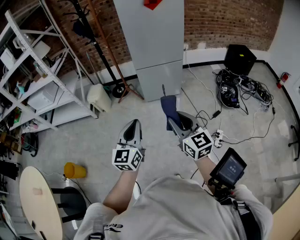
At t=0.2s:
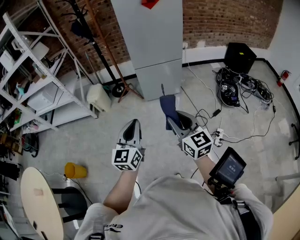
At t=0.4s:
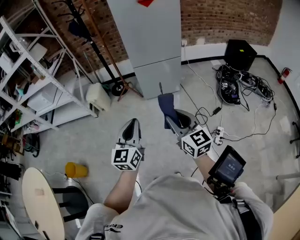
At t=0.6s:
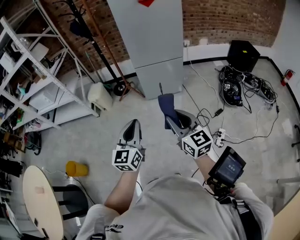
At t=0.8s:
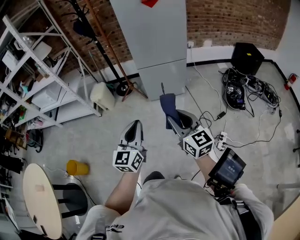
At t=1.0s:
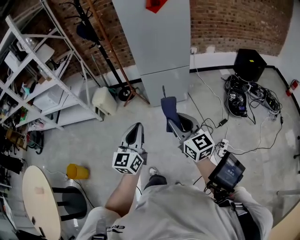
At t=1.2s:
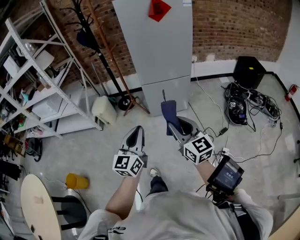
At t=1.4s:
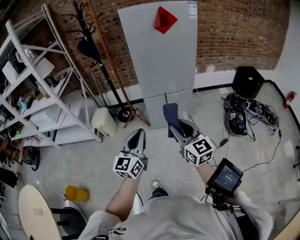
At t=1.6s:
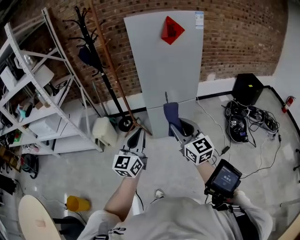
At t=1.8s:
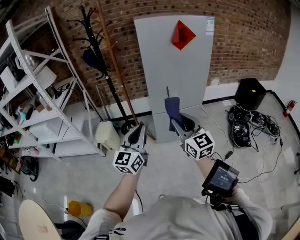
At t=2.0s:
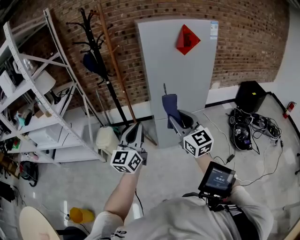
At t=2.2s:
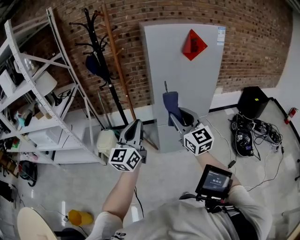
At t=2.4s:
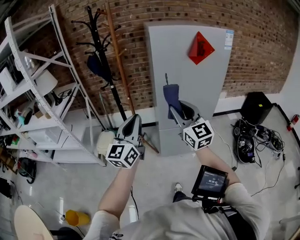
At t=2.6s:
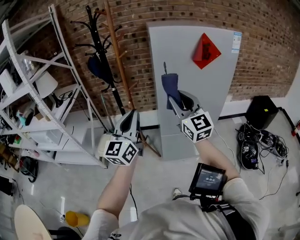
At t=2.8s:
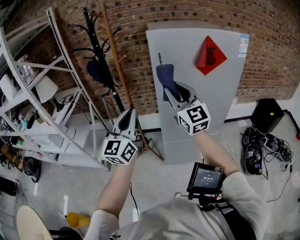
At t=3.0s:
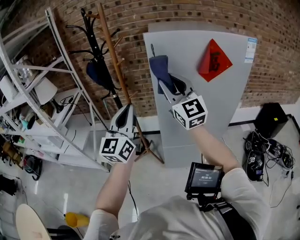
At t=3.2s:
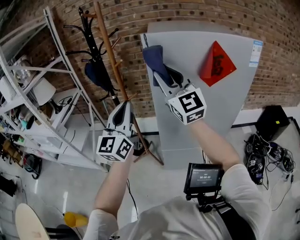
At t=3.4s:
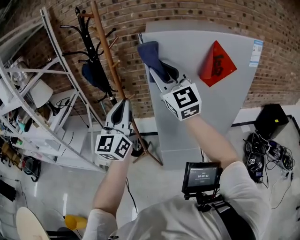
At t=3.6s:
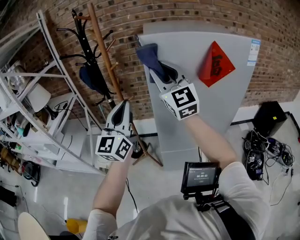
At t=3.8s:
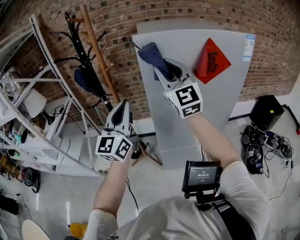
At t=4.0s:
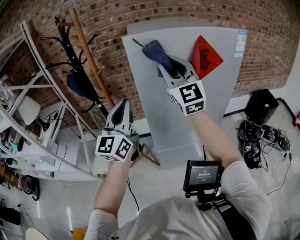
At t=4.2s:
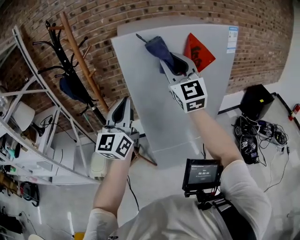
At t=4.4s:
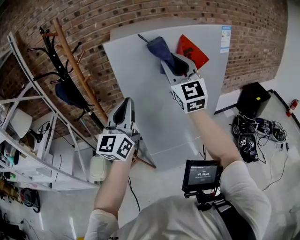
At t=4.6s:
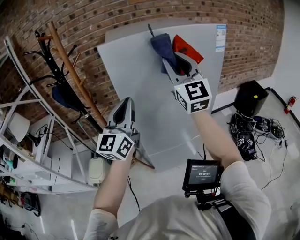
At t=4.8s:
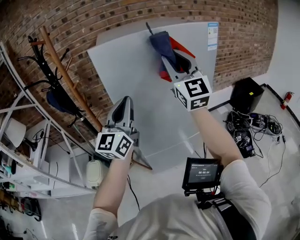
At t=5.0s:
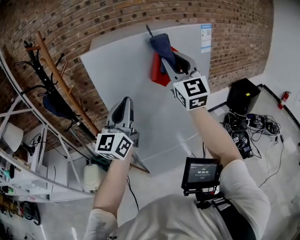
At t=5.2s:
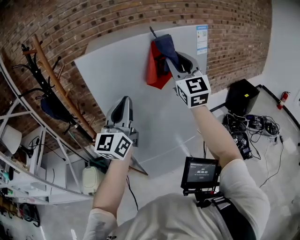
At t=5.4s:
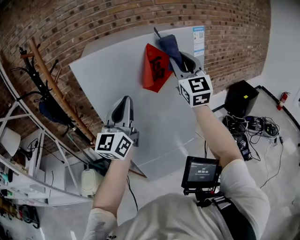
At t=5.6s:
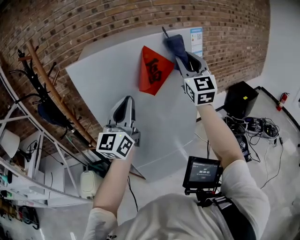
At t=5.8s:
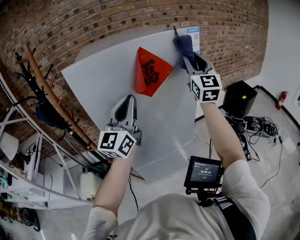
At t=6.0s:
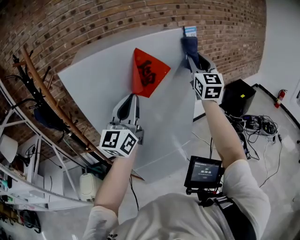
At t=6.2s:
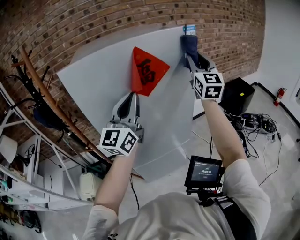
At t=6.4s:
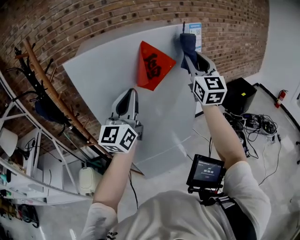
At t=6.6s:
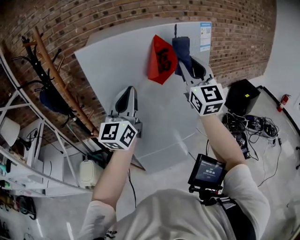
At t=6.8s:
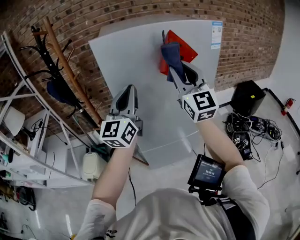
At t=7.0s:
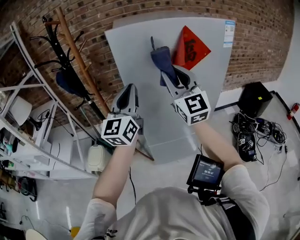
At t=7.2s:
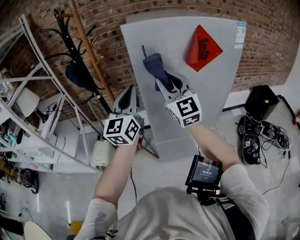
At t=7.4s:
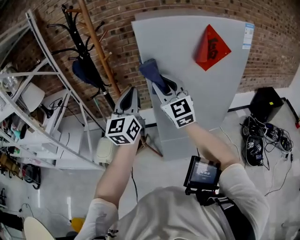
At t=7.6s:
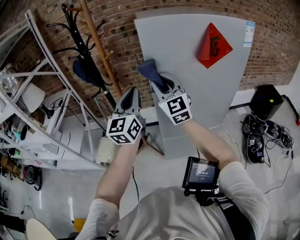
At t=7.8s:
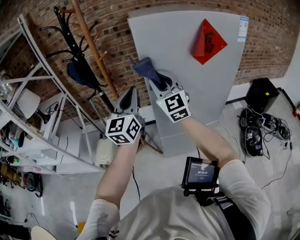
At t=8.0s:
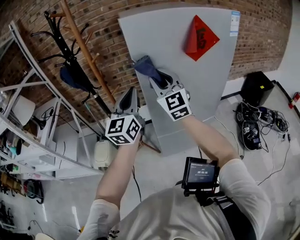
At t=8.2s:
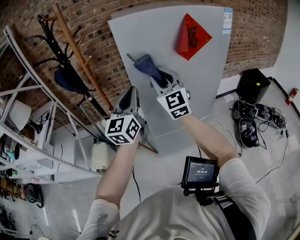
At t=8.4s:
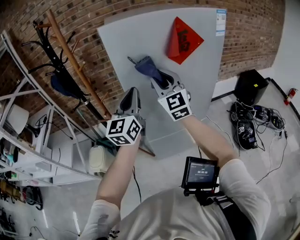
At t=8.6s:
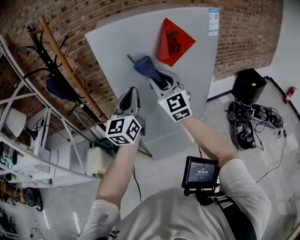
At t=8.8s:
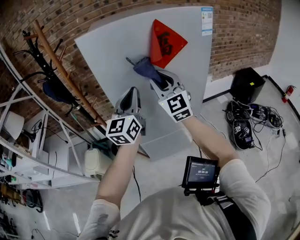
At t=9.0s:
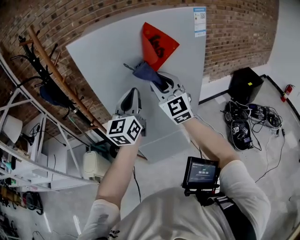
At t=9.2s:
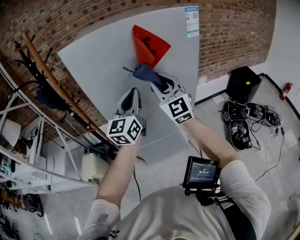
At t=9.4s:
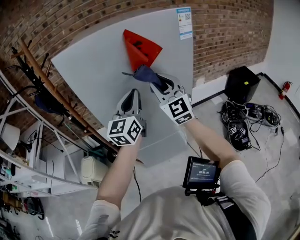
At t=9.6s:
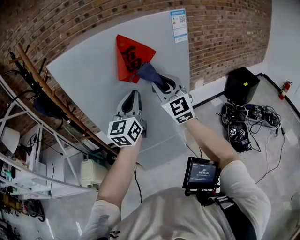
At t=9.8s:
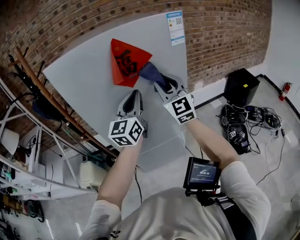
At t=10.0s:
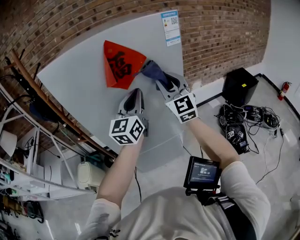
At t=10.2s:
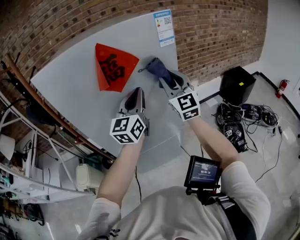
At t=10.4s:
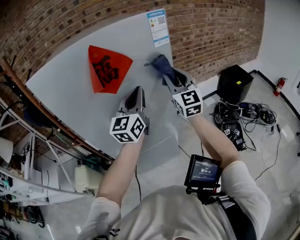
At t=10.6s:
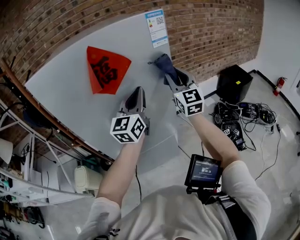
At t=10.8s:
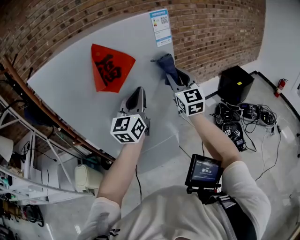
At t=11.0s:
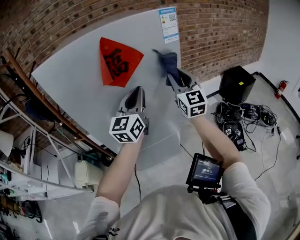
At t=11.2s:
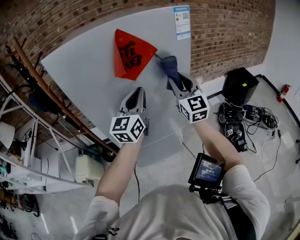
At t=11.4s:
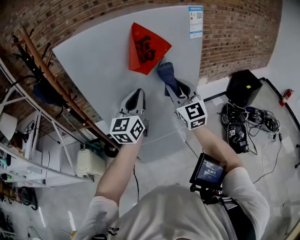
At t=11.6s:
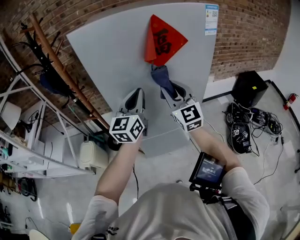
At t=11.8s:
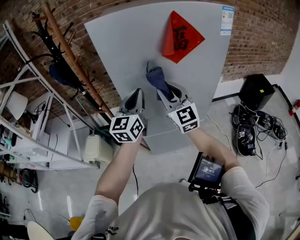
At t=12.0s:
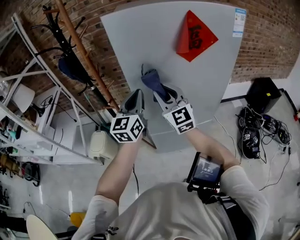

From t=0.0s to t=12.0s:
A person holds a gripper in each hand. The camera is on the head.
From t=0.0s to t=1.6s: The grippers both shift forward by about 25 cm.
From t=1.6s to t=3.0s: The two grippers go some 40 cm forward and upward. The right gripper rotates roughly 30 degrees.
From t=3.0s to t=4.4s: Both grippers travel together to the right and forward, approximately 15 cm. The right gripper rotates approximately 20 degrees.
From t=4.4s to t=6.0s: The left gripper is displaced to the right and forward by roughly 20 cm; the right gripper heads to the right and forward, covering about 30 cm, and turns by approximately 20 degrees.
From t=6.0s to t=7.6s: The left gripper shifts by roughly 25 cm, and swivels roughly 30 degrees, while the right gripper changes place by approximately 50 cm, and rotates approximately 40 degrees.
From t=7.6s to t=9.0s: Both grippers move to the right, some 20 cm.
From t=9.0s to t=10.4s: The left gripper shifts some 20 cm to the right and forward. The right gripper moves to the right, some 25 cm.
From t=10.4s to t=12.0s: The grippers both shift to the left by some 30 cm. The right gripper swivels roughly 20 degrees.

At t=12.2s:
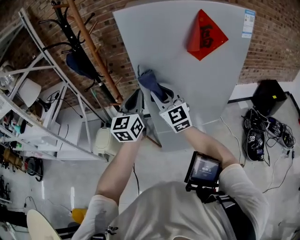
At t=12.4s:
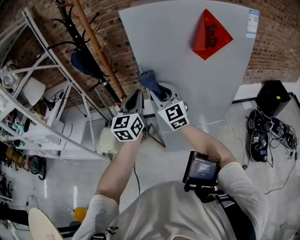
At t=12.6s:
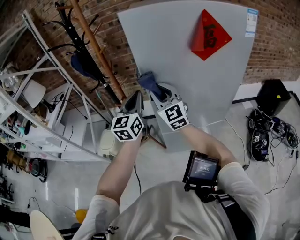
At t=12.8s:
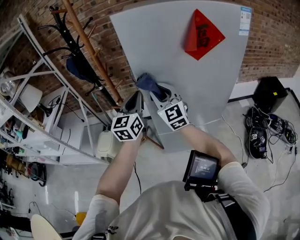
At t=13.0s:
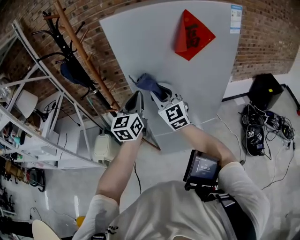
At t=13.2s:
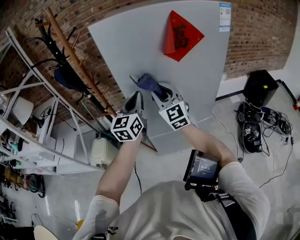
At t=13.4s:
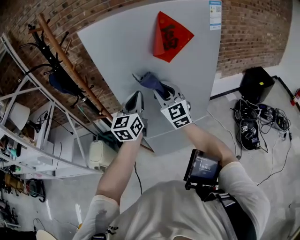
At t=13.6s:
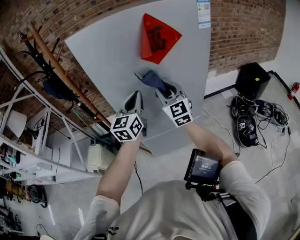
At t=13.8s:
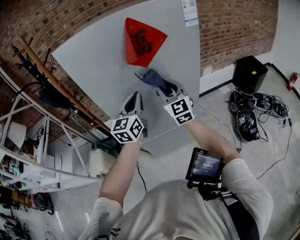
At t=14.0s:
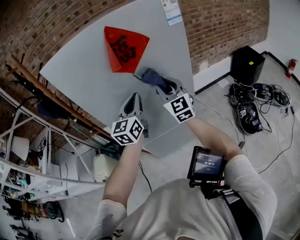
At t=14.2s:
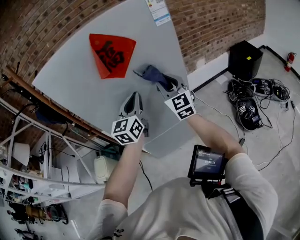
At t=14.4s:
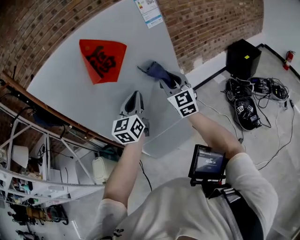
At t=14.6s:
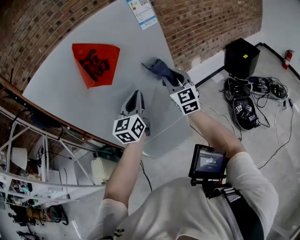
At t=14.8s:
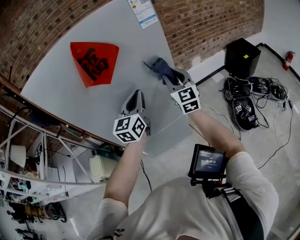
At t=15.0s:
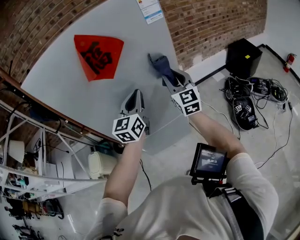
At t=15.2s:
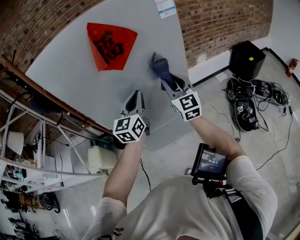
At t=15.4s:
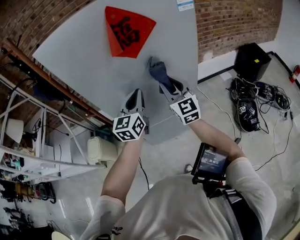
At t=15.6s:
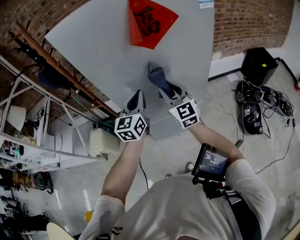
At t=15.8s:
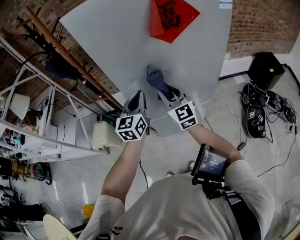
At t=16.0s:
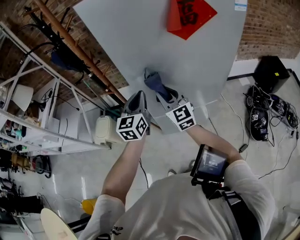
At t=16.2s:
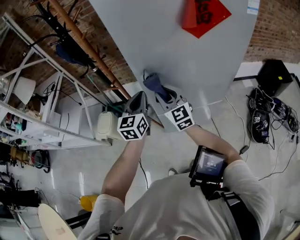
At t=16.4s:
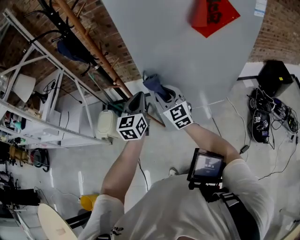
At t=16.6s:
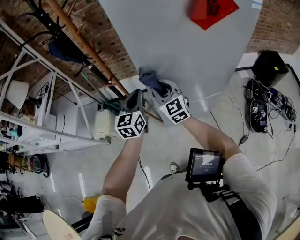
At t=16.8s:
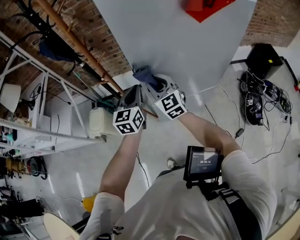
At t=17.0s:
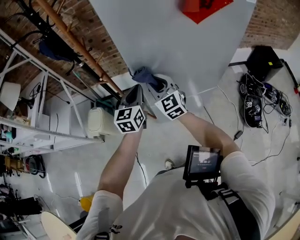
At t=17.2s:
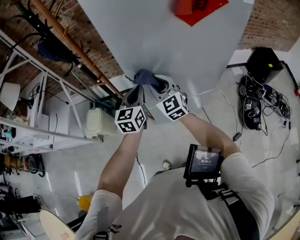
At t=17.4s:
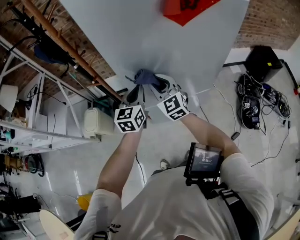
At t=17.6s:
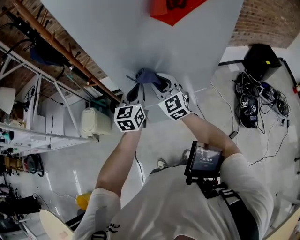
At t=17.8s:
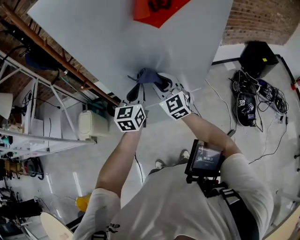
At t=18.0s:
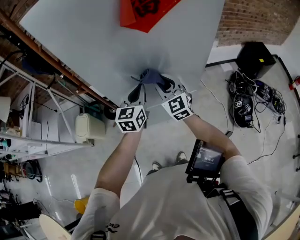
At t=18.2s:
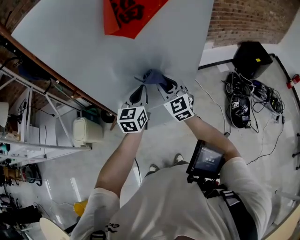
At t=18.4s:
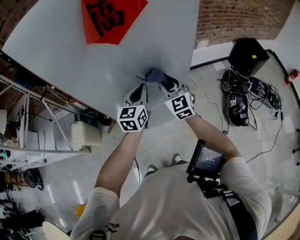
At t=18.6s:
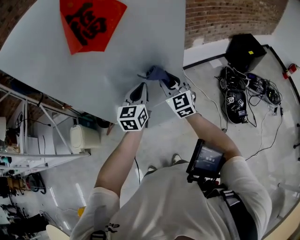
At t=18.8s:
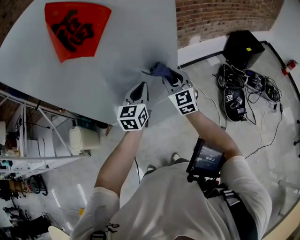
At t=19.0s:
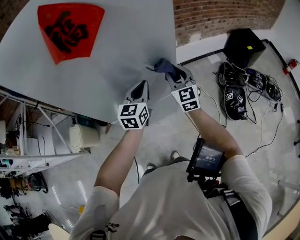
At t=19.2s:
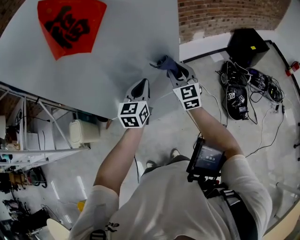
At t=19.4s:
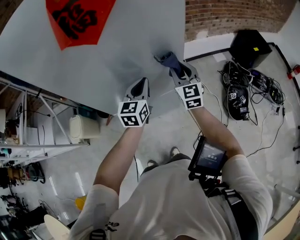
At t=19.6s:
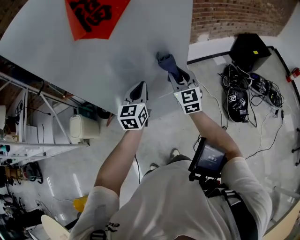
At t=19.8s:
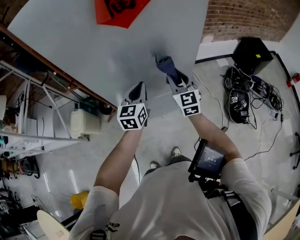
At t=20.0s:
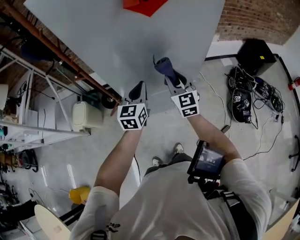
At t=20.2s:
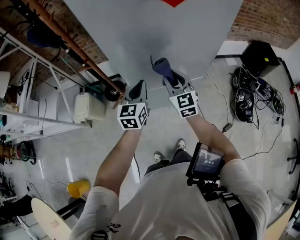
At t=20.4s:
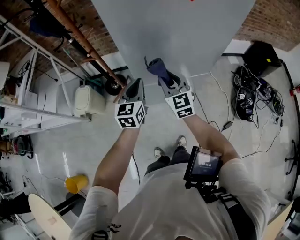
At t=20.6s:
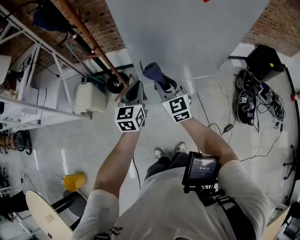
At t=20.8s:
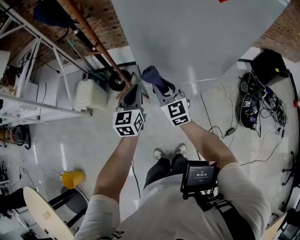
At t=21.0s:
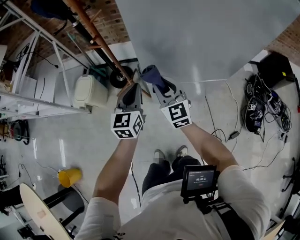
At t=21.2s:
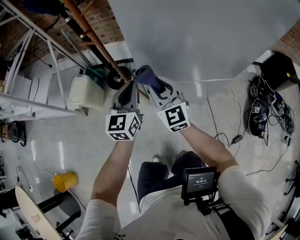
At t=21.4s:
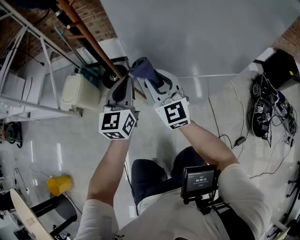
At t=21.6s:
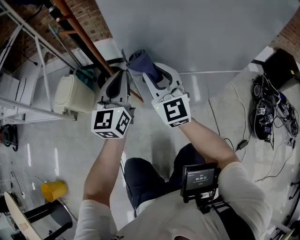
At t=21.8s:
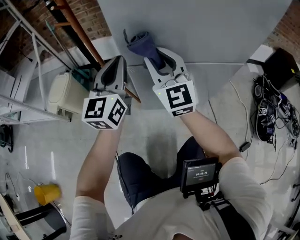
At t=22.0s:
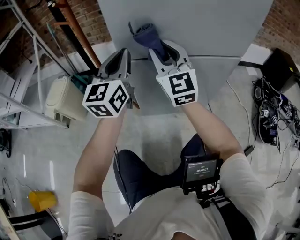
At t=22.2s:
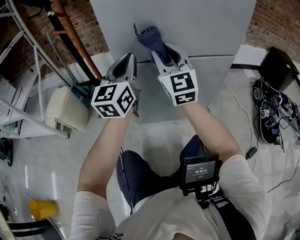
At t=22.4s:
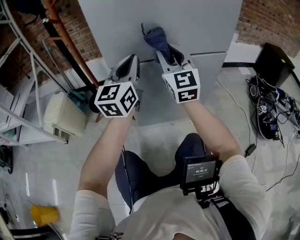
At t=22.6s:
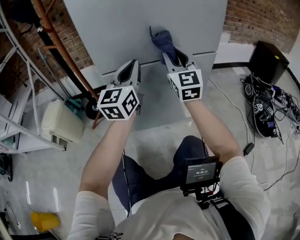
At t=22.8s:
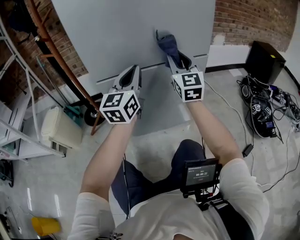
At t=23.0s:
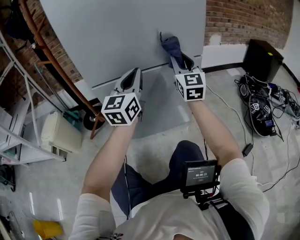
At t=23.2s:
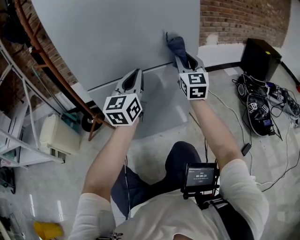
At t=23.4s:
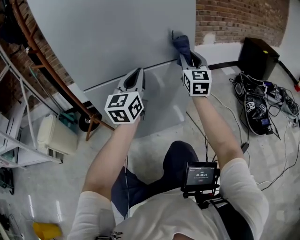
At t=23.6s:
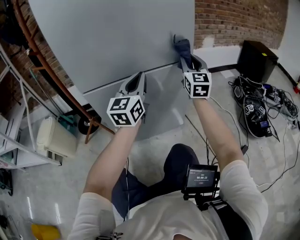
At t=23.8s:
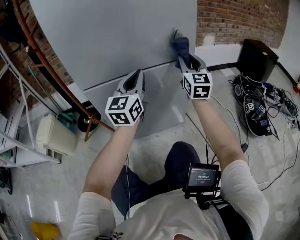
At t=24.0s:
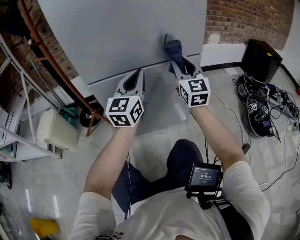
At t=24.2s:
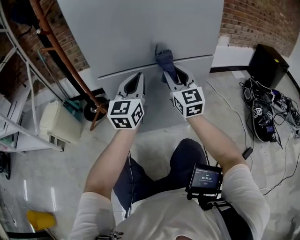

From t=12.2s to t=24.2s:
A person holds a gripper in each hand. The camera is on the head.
From t=12.2s to t=13.8s: Both grippers move to the right, some 20 cm.
From t=13.8s to t=15.2s: The grippers both shift to the right by roughly 10 cm.
From t=15.2s to t=16.6s: Both grippers travel together to the left, some 30 cm. The right gripper rotates about 20 degrees.
From t=16.6s to t=18.2s: The grippers both shift to the right by about 25 cm.
From t=18.2s to t=19.8s: The right gripper travels to the right by approximately 5 cm. The left gripper goes to the right and returns, approximately 15 cm each way.
From t=19.8s to t=21.2s: Both grippers travel together to the left and downward, about 30 cm. The right gripper rotates roughly 20 degrees.
From t=21.2s to t=22.6s: Both grippers travel together to the right and downward, about 25 cm. The right gripper rotates approximately 30 degrees; the left gripper changes its angle by some 20 degrees.
From t=22.6s to t=24.2s: The grippers both shift downward by roughly 5 cm. The right gripper moves some 20 cm to the right and comes back. The left gripper goes to the right and returns, approximately 10 cm each way.
